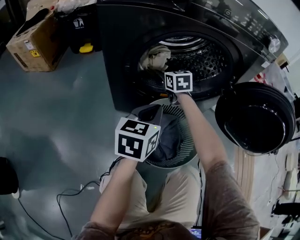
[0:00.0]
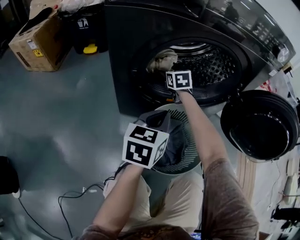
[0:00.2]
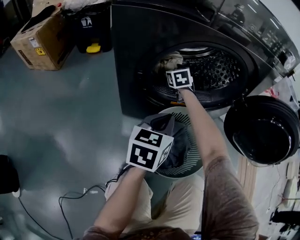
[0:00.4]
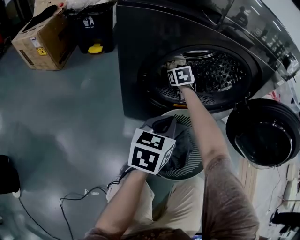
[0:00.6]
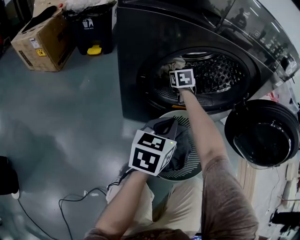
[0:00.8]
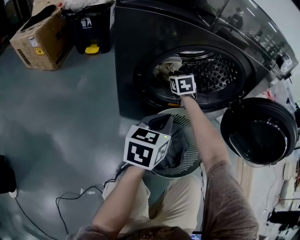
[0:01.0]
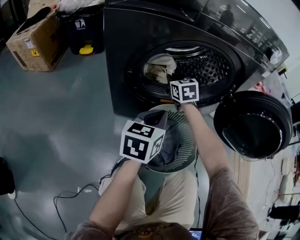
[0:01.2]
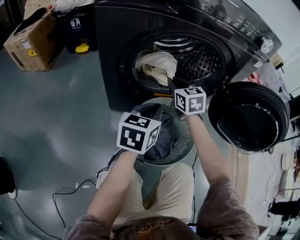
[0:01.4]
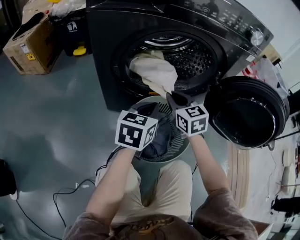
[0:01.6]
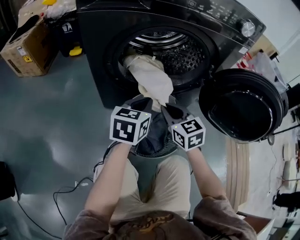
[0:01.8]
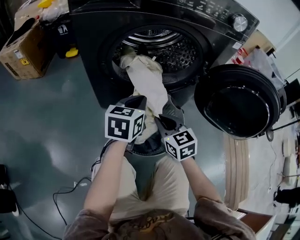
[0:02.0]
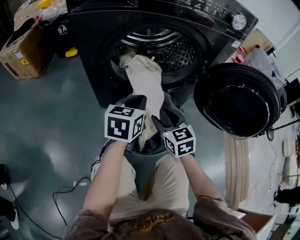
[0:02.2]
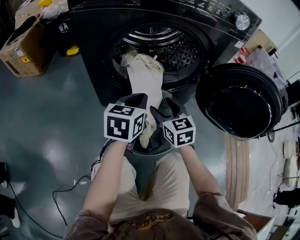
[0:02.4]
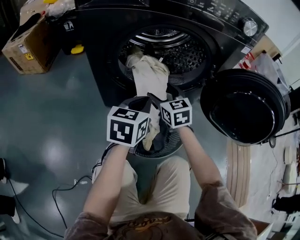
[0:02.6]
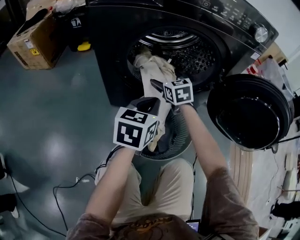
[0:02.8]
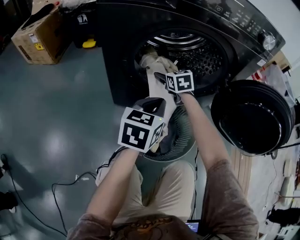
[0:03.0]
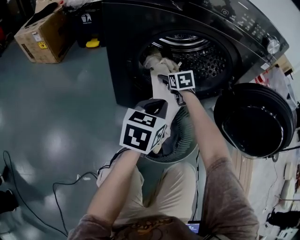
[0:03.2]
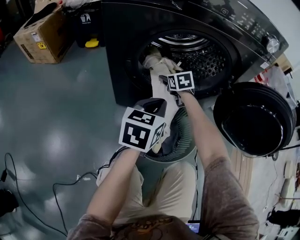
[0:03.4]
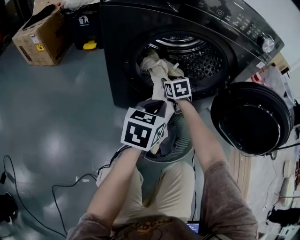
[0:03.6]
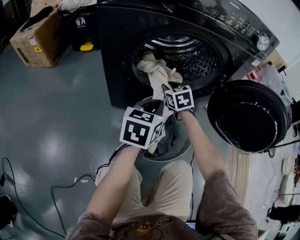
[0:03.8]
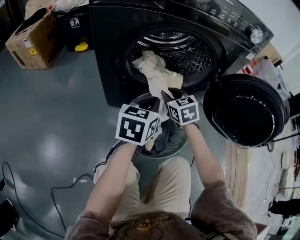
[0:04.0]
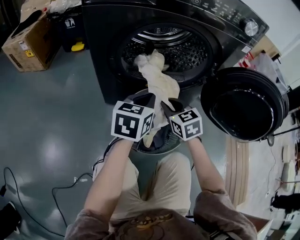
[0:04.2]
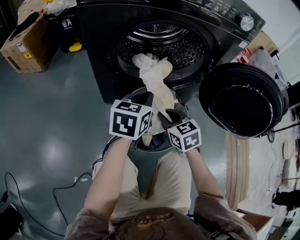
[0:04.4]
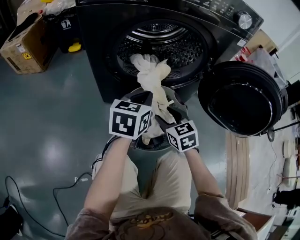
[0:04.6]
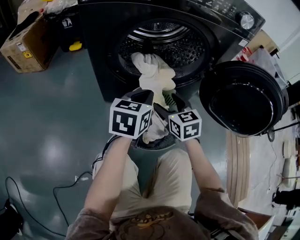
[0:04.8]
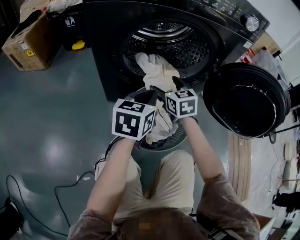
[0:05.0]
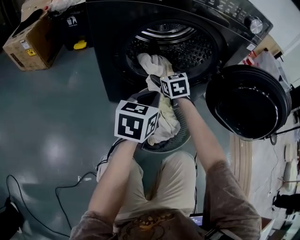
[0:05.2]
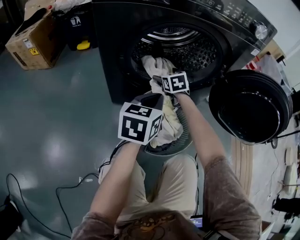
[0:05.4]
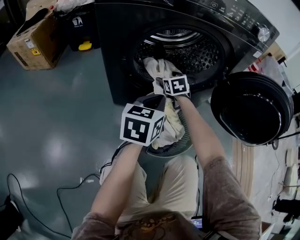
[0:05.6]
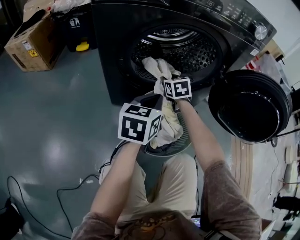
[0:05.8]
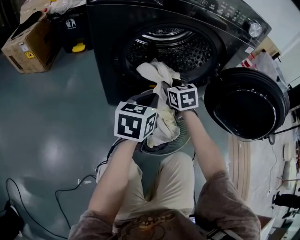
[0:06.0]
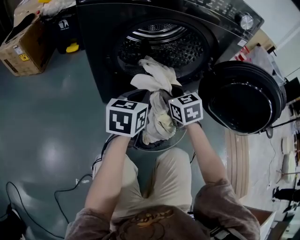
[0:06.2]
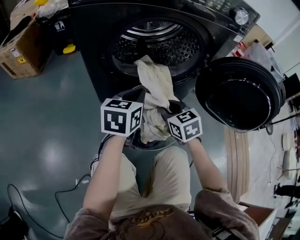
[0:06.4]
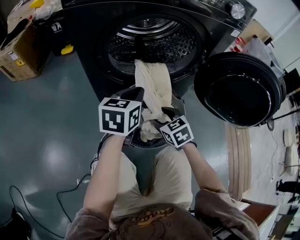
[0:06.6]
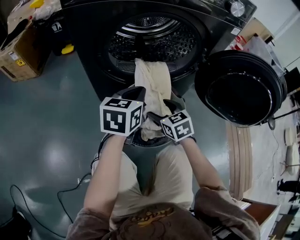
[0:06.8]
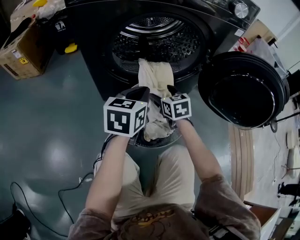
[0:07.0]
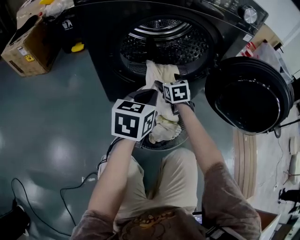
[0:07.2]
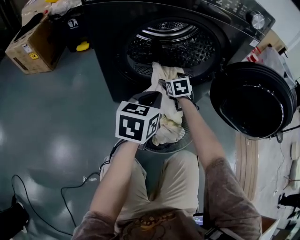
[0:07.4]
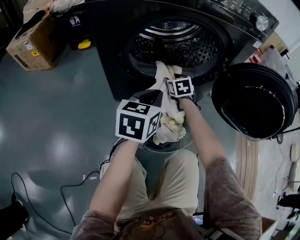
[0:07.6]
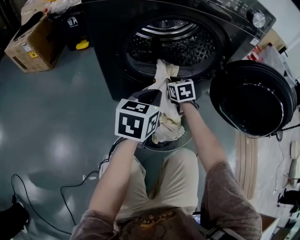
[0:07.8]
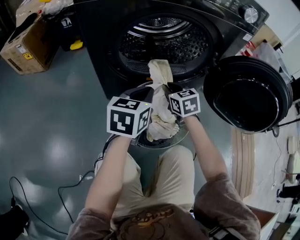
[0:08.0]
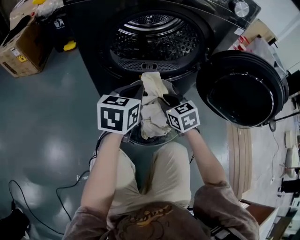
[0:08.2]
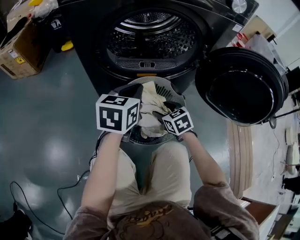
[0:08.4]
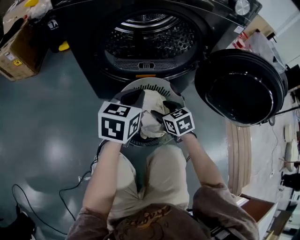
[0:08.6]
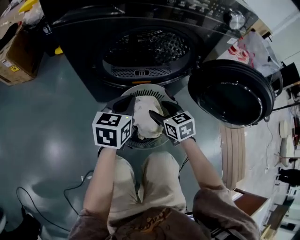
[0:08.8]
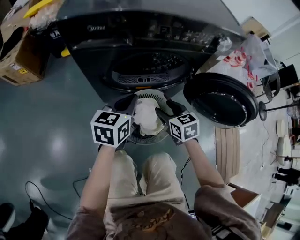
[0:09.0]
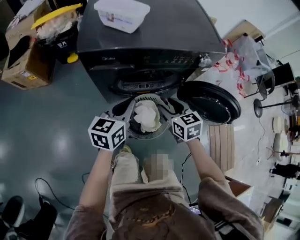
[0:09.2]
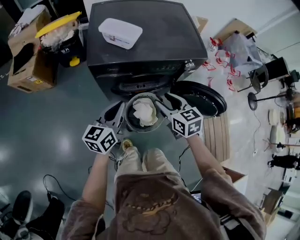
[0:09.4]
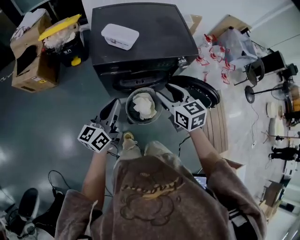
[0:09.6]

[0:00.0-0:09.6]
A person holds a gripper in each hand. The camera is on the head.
0:00.0 to 0:01.6: The right gripper heads backward and to the right, covering some 20 cm, and closes up.
0:01.6 to 0:03.2: The right gripper moves forward and downward, some 15 cm, and opens.
0:03.2 to 0:04.8: The right gripper moves backward, some 20 cm, and closes, then opens again.
0:04.8 to 0:06.4: The right gripper moves approximately 20 cm forward and comes back, and closes up.
0:06.4 to 0:08.0: The right gripper travels forward by about 10 cm, and opens, then closes again.
0:08.0 to 0:09.6: Both grippers move upward, approximately 50 cm. The left gripper rotates about 30 degrees.

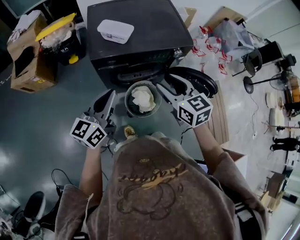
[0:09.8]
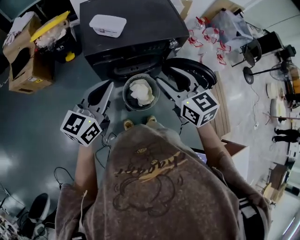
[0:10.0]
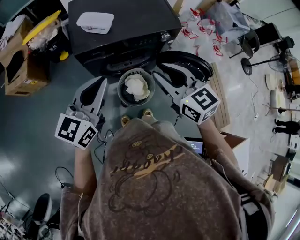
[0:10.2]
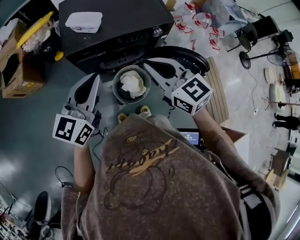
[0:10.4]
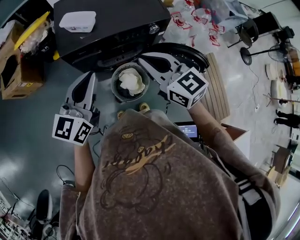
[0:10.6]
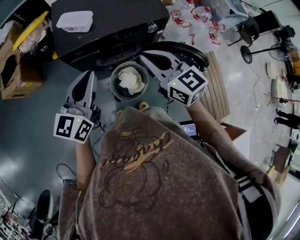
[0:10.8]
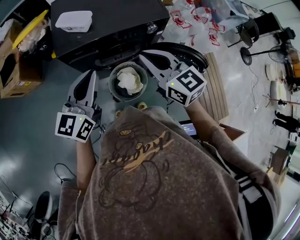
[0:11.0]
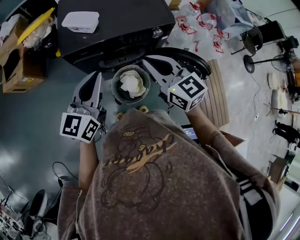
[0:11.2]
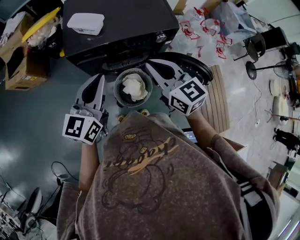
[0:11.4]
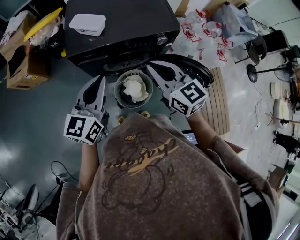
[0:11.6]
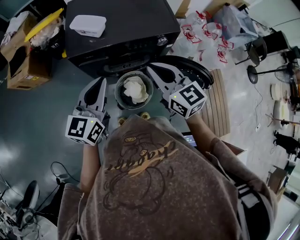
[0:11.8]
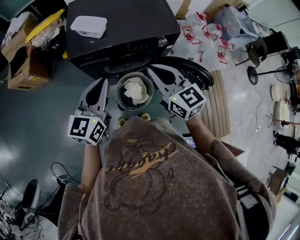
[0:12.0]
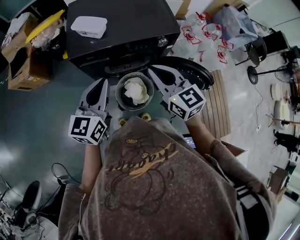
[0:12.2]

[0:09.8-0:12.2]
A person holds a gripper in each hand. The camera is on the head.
0:09.8 to 0:11.0: The left gripper travels to the right by approximately 10 cm. The right gripper goes approximately 5 cm to the right, and closes its fingers.
0:11.0 to 0:12.2: There are only small adjustments of the grippers.

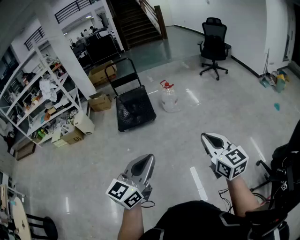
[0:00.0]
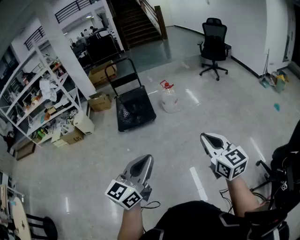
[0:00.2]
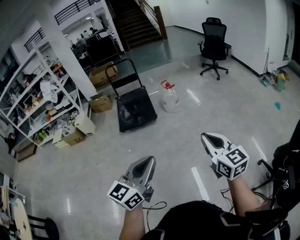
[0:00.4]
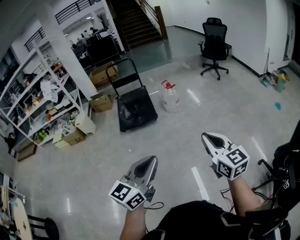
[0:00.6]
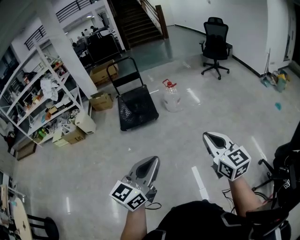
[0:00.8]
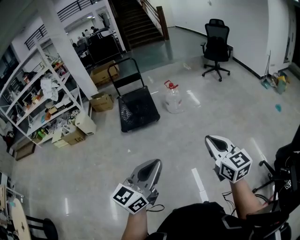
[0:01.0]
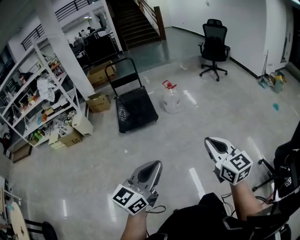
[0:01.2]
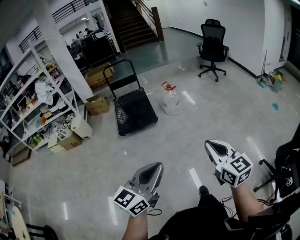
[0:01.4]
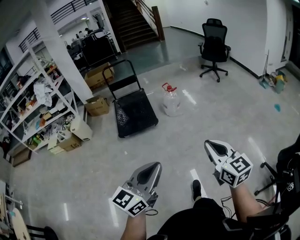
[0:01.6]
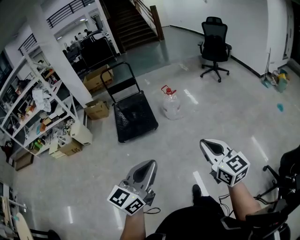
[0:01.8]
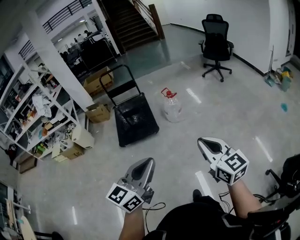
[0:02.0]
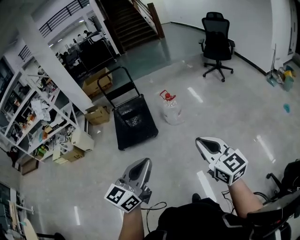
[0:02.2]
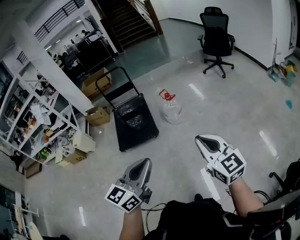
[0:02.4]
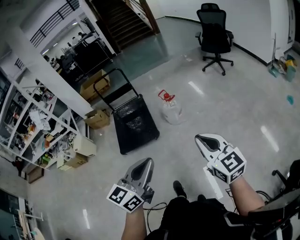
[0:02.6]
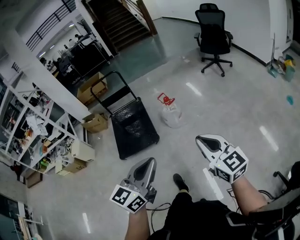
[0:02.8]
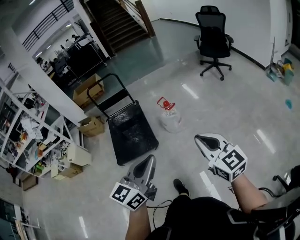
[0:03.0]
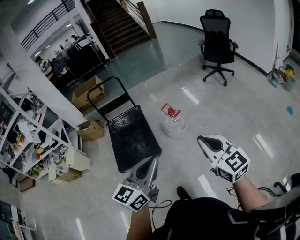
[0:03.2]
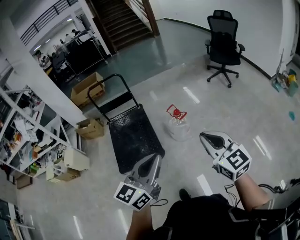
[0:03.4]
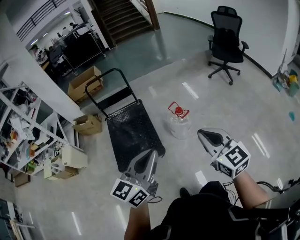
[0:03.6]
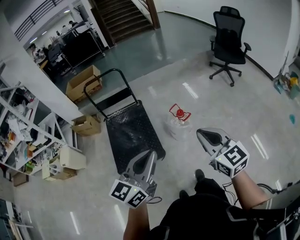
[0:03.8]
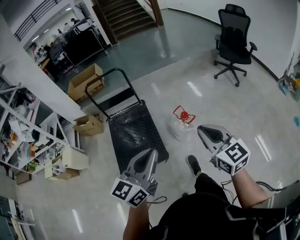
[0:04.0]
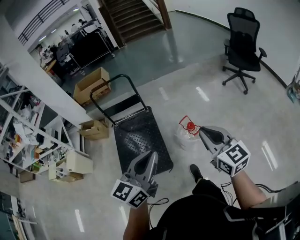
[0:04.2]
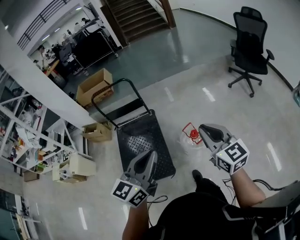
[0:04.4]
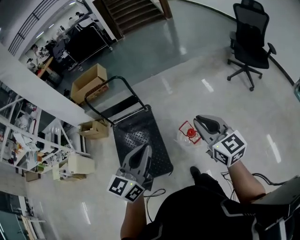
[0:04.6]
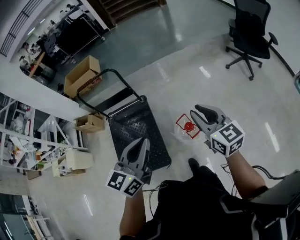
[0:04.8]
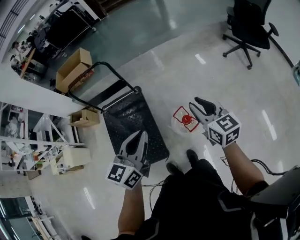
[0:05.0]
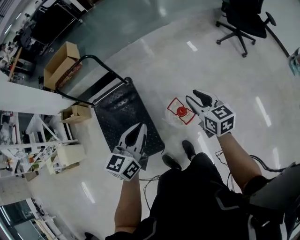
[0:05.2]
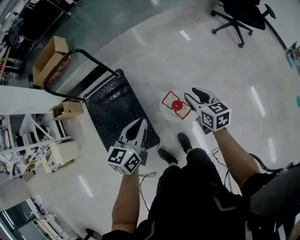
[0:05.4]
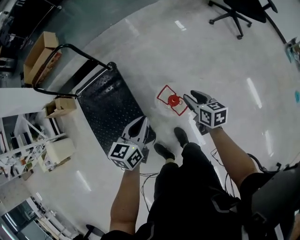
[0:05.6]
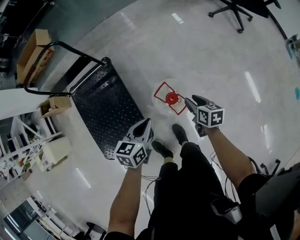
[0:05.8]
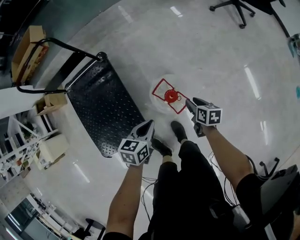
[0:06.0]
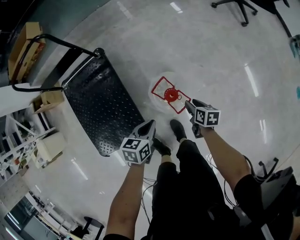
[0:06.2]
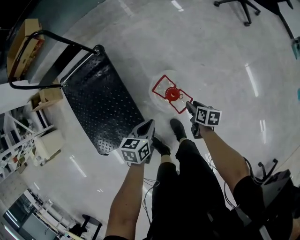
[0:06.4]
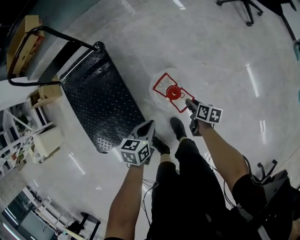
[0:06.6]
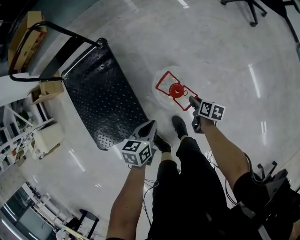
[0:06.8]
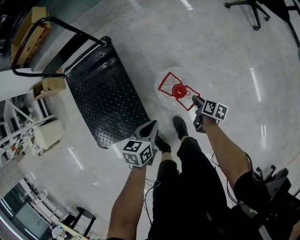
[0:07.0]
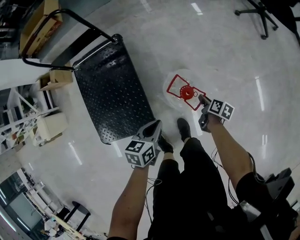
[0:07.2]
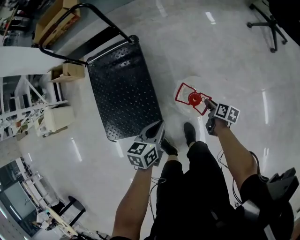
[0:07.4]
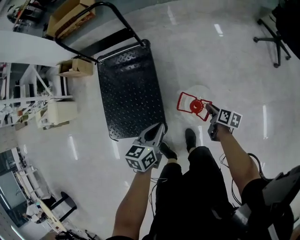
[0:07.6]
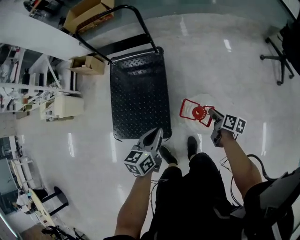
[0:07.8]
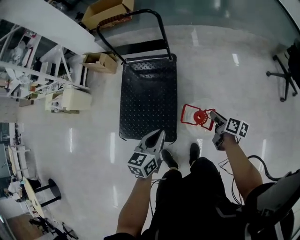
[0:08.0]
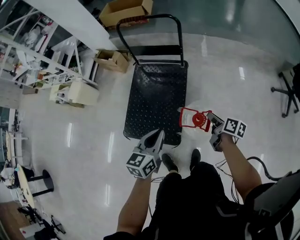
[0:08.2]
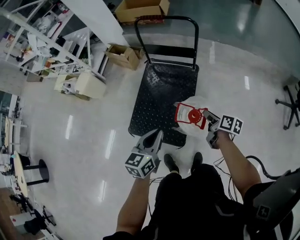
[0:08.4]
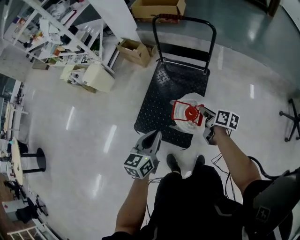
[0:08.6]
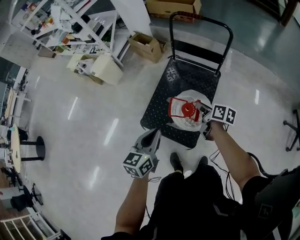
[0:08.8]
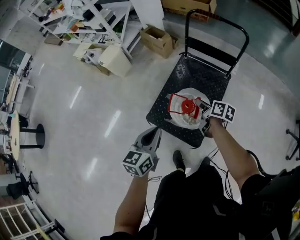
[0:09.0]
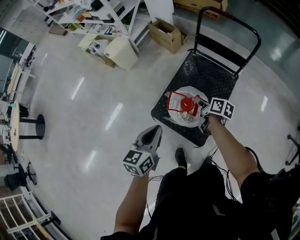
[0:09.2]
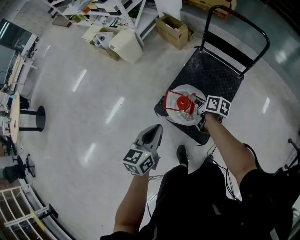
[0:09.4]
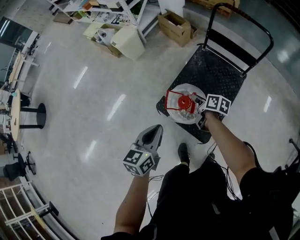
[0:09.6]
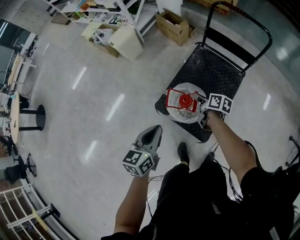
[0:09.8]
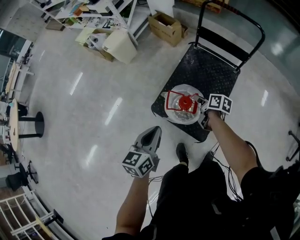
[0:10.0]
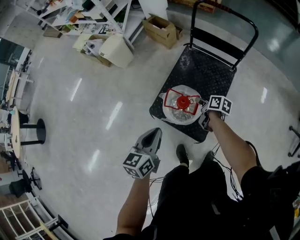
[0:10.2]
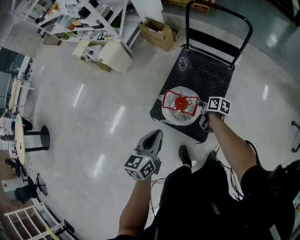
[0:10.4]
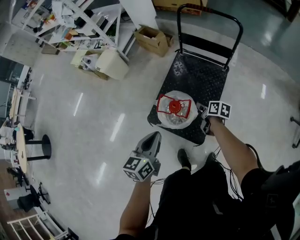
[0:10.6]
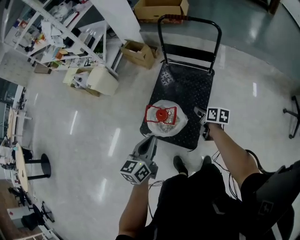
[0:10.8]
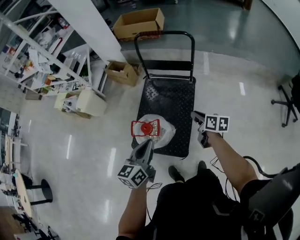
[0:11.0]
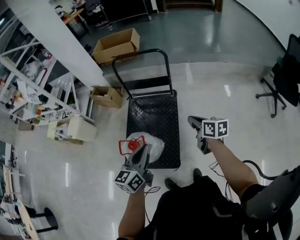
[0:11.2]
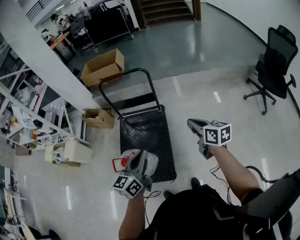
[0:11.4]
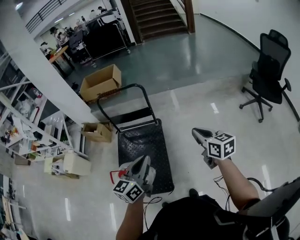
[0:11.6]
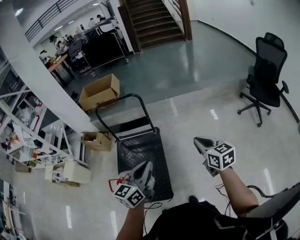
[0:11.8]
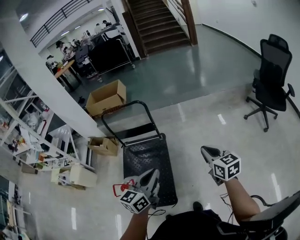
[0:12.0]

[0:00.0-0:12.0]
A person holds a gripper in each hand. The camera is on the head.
0:00.0 to 0:01.6: Both grippers move to the left and forward, roughly 10 cm.
0:01.6 to 0:03.0: Both grippers are carried forward, approximately 40 cm.
0:03.0 to 0:04.4: Both grippers are carried forward, roughly 50 cm.
0:04.4 to 0:06.0: The left gripper moves downward and forward, about 50 cm, and tips its fingers downward by approximately 40 degrees; the right gripper moves downward, some 50 cm, angles its fingers downward, by some 40 degrees, and opens up.
0:06.0 to 0:07.6: The left gripper shifts approximately 15 cm to the left and upward, and turns by roughly 20 degrees. The right gripper shifts some 10 cm to the left, and reaches about 10 cm downward, then returns.
0:07.6 to 0:09.0: The two grippers travel together, some 50 cm. The right gripper rotates about 40 degrees; the left gripper changes its angle by some 40 degrees.
0:09.0 to 0:10.4: The right gripper heads downward, covering roughly 10 cm, and moves some 15 cm to the left and comes back, while the left gripper reaches approximately 10 cm to the left, then returns.
0:10.4 to 0:12.0: The pair of grippers is taken some 40 cm. The left gripper turns by some 40 degrees, while the right gripper swivels about 50 degrees.
